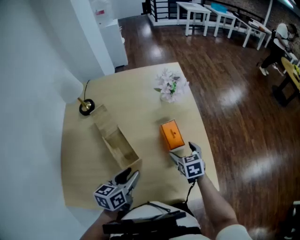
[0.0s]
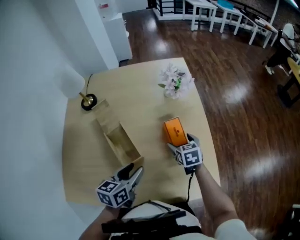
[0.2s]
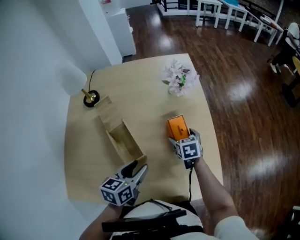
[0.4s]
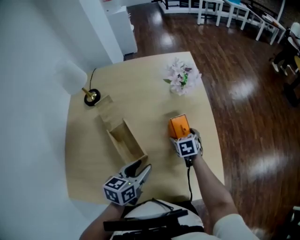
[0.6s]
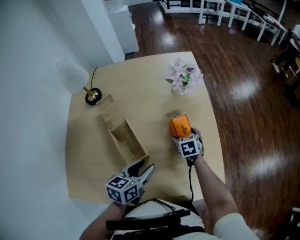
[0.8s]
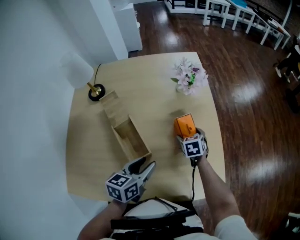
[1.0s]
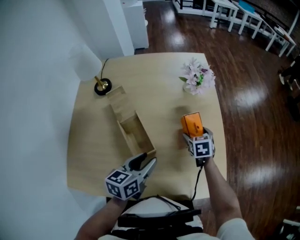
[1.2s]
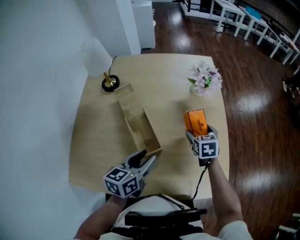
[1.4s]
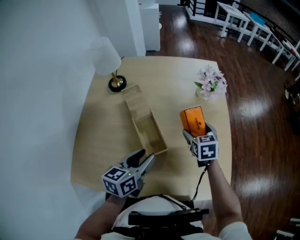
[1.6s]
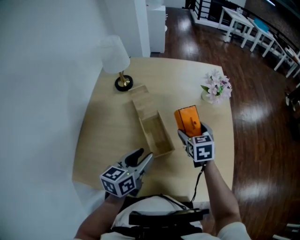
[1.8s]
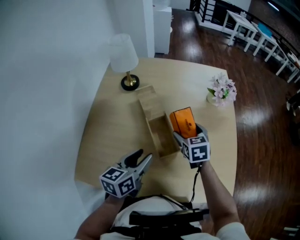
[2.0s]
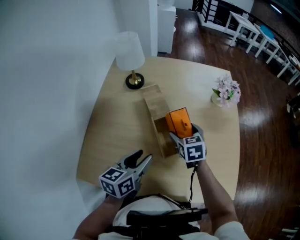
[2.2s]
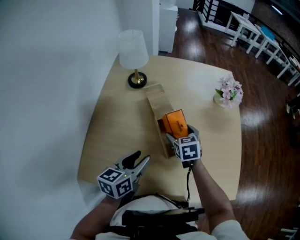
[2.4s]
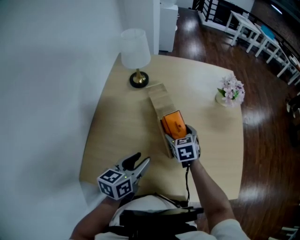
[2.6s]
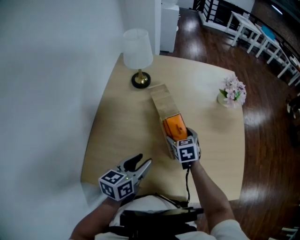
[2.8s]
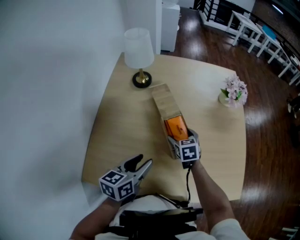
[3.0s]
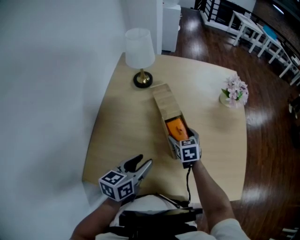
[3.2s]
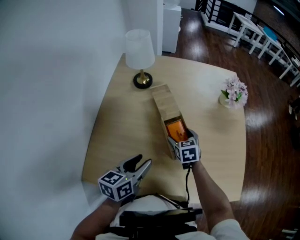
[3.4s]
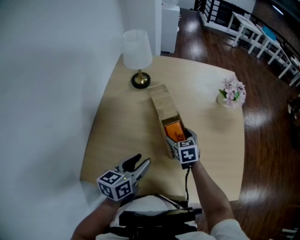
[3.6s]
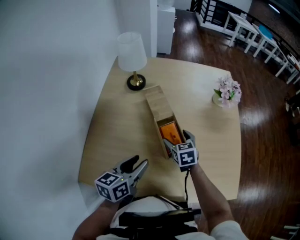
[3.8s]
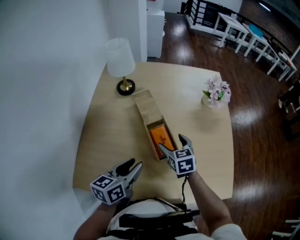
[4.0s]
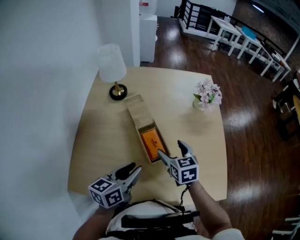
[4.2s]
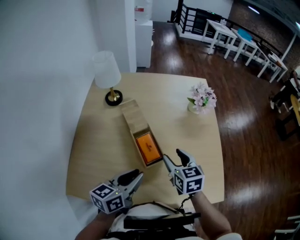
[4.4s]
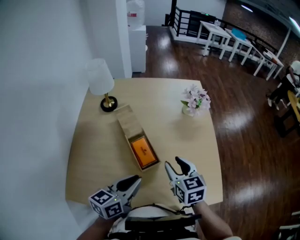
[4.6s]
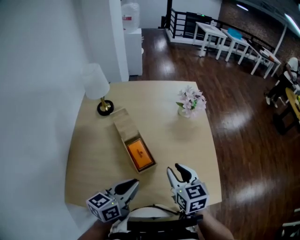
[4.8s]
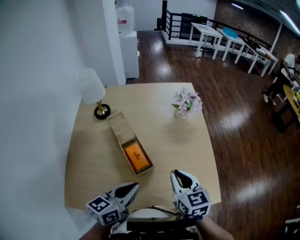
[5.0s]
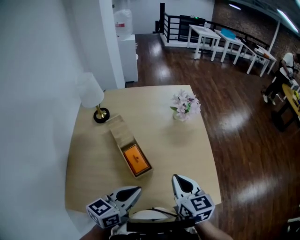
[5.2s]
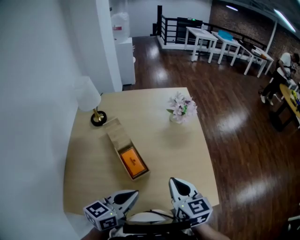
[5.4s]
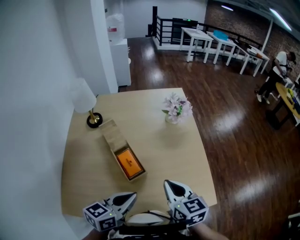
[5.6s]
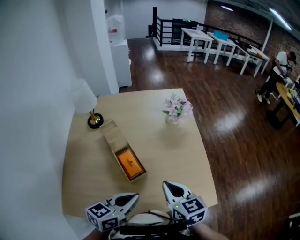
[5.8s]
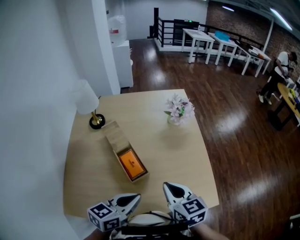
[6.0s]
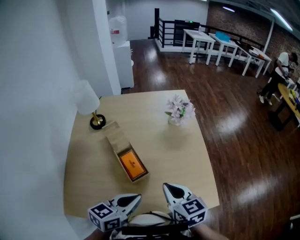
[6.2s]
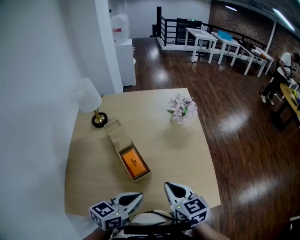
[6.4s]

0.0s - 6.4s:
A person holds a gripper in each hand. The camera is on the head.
0.0s - 1.6s: The left gripper shifts roughly 5 cm to the left. Meanwhile the right gripper moves to the left, forward and upward, approximately 15 cm.
1.6s - 3.2s: The two grippers go approximately 20 cm to the left.
3.2s - 4.8s: The left gripper goes about 15 cm to the right and upward, and closes. The right gripper shifts roughly 25 cm upward, to the right and backward, and closes its fingers.
4.8s - 6.4s: The left gripper heads to the right, covering about 5 cm.

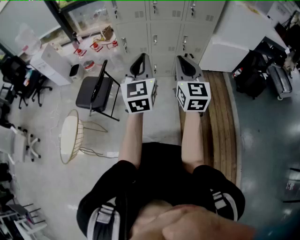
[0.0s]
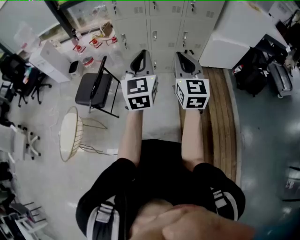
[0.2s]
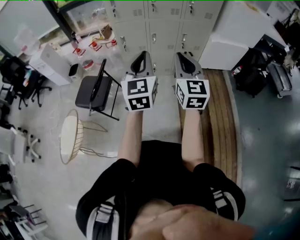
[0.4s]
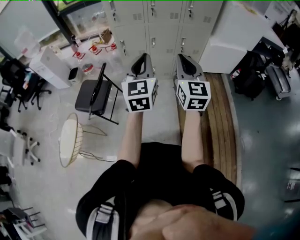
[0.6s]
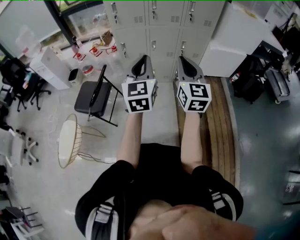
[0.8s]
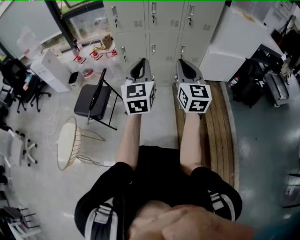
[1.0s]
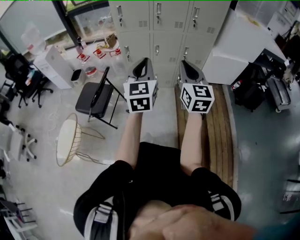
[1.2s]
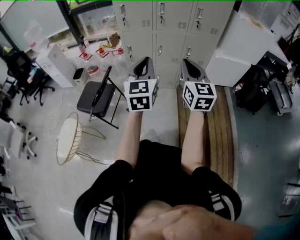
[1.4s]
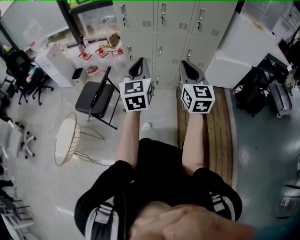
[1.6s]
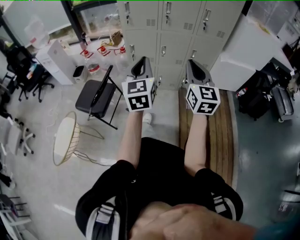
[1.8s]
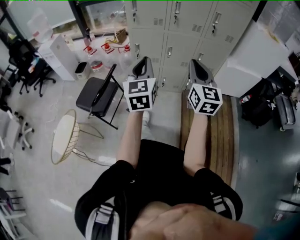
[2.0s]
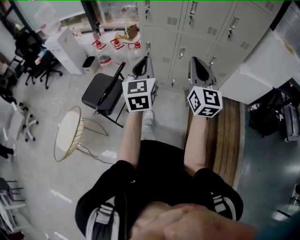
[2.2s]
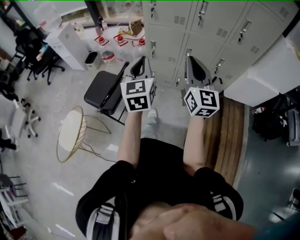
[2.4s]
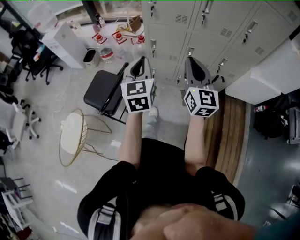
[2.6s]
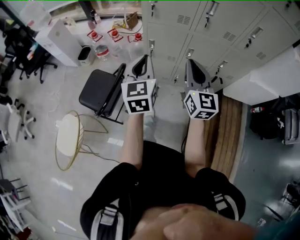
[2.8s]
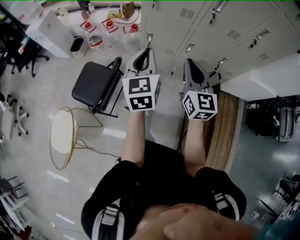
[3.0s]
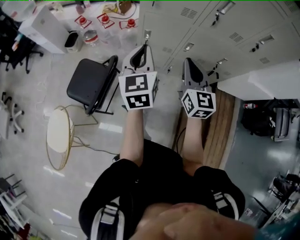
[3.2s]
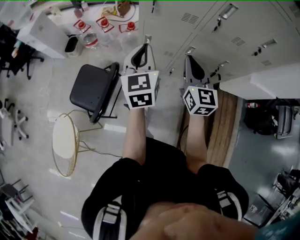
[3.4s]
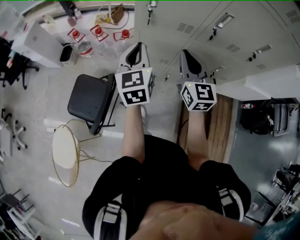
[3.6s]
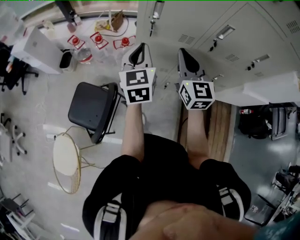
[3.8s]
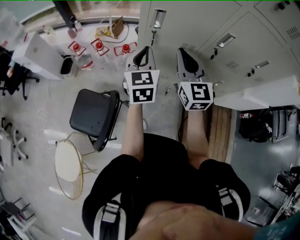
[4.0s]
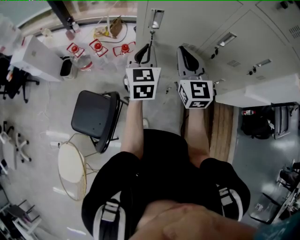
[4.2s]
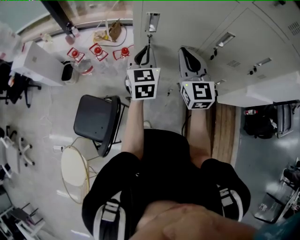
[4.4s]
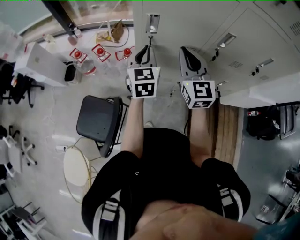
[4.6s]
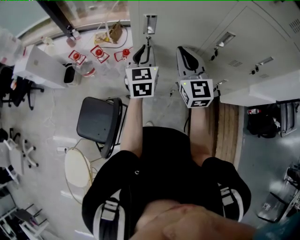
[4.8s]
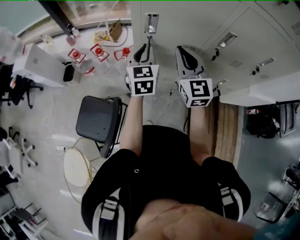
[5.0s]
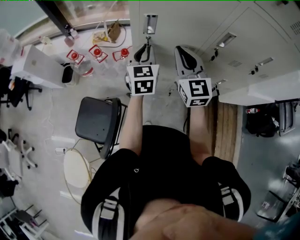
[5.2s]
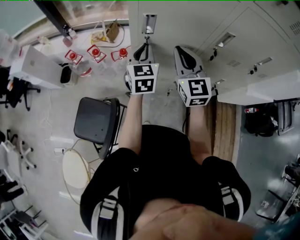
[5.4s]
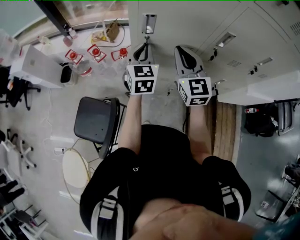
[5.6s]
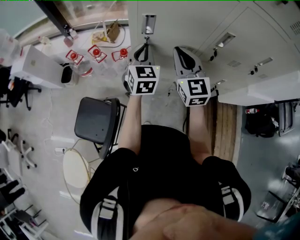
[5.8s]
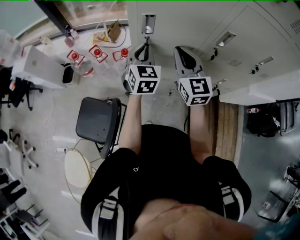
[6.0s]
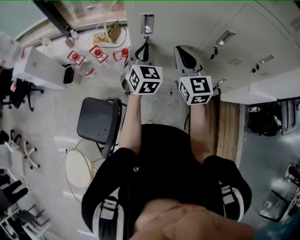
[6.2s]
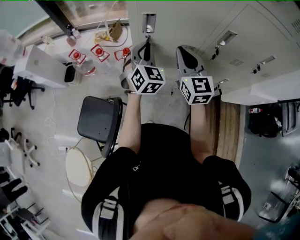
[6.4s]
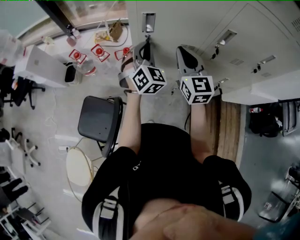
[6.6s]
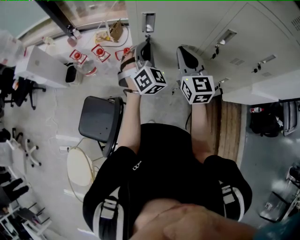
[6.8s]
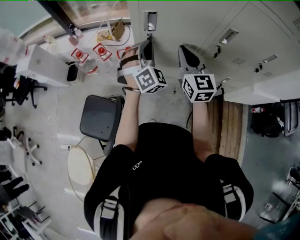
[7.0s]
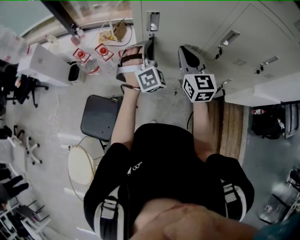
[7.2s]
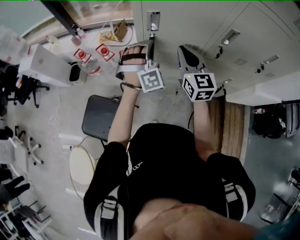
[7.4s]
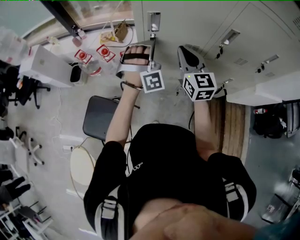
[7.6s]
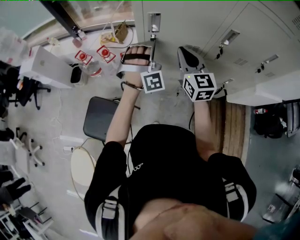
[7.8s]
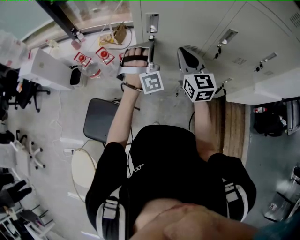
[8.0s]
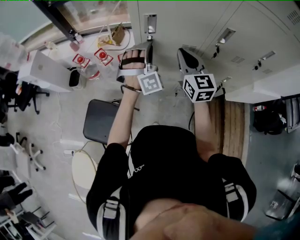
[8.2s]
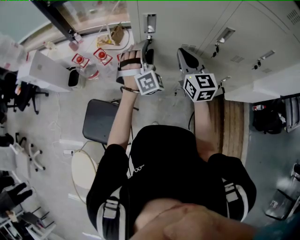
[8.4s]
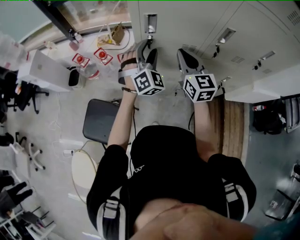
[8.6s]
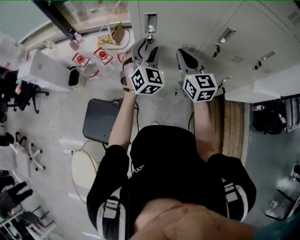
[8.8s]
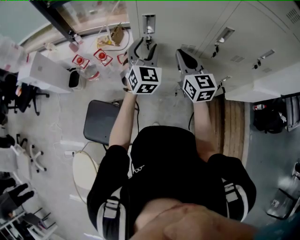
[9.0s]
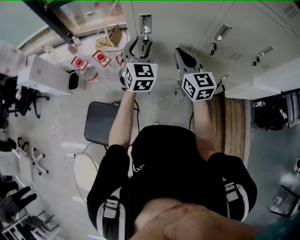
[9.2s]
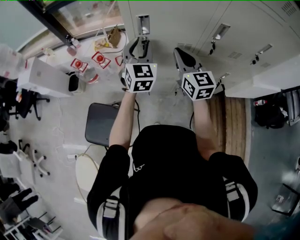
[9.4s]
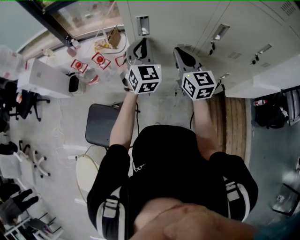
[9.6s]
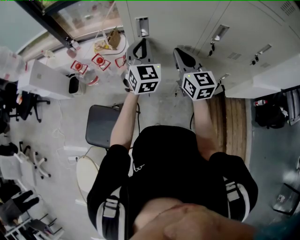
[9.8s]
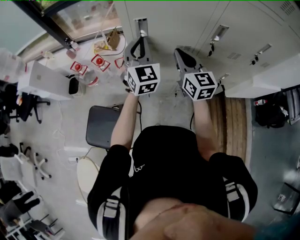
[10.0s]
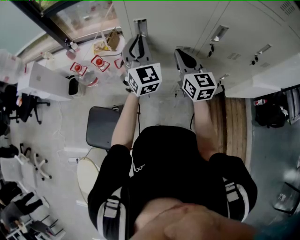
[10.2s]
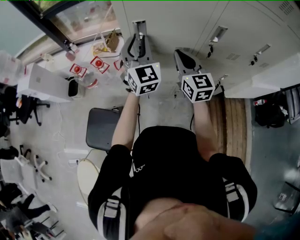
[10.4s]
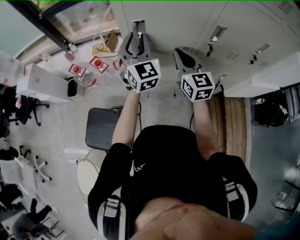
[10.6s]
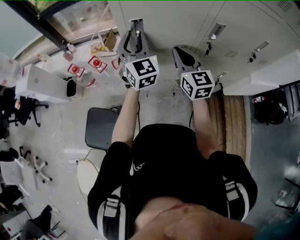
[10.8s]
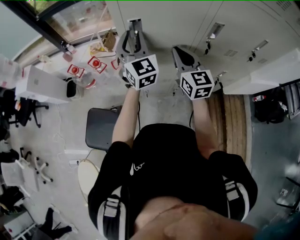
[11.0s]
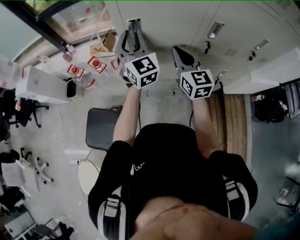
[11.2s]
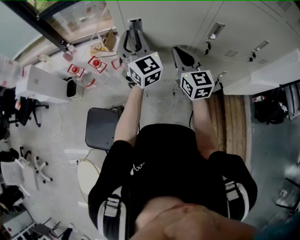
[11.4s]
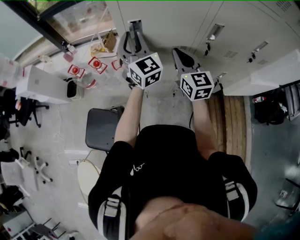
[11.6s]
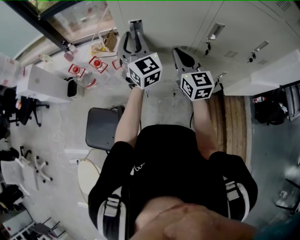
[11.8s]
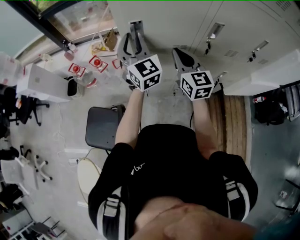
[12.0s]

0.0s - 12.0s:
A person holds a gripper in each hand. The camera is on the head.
0.0s - 1.6s: The grippers make only small movements.
1.6s - 3.0s: Both grippers travel together forward, some 35 cm.
3.0s - 4.4s: The two grippers go some 25 cm forward.
4.4s - 6.0s: The grippers move only a little.
6.0s - 7.6s: The left gripper twists some 80 degrees clockwise, seen from behind.
7.6s - 9.0s: The left gripper rolls counterclockwise, seen from behind, by approximately 60 degrees, and opens.
9.0s - 10.4s: The left gripper moves upward, roughly 5 cm, and closes.
10.4s - 12.0s: The grippers move only a little.

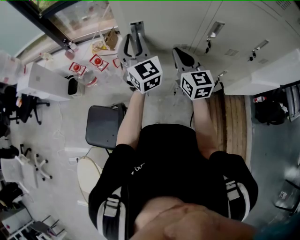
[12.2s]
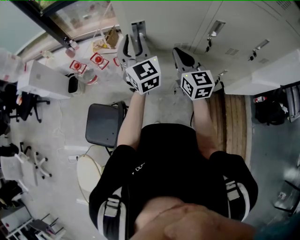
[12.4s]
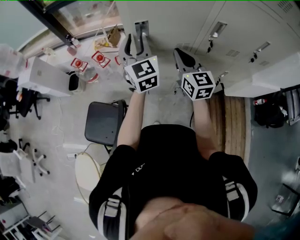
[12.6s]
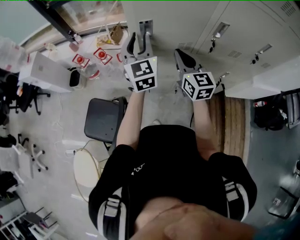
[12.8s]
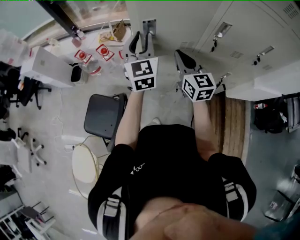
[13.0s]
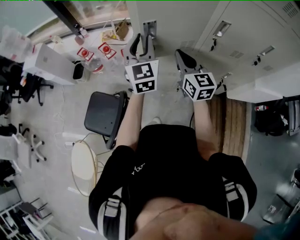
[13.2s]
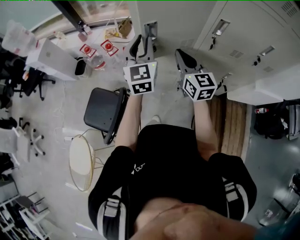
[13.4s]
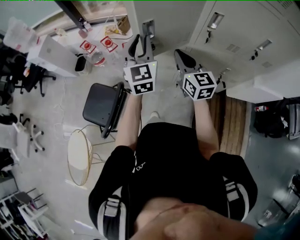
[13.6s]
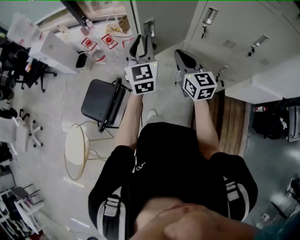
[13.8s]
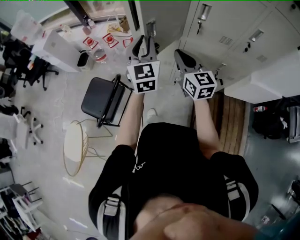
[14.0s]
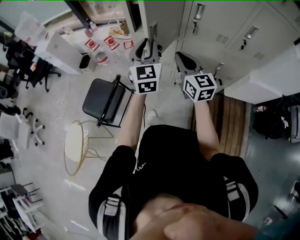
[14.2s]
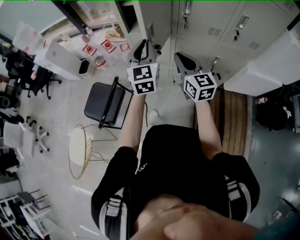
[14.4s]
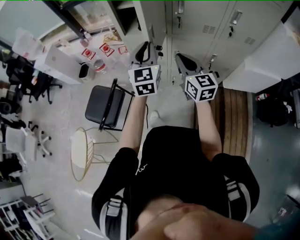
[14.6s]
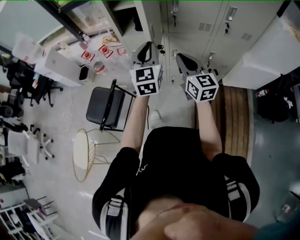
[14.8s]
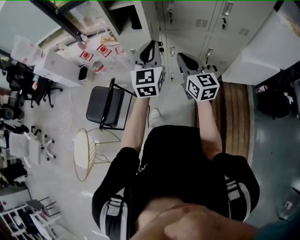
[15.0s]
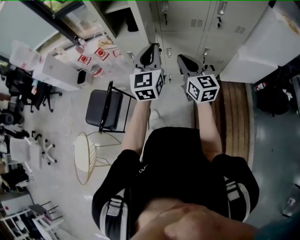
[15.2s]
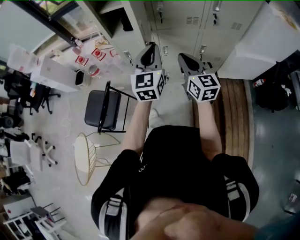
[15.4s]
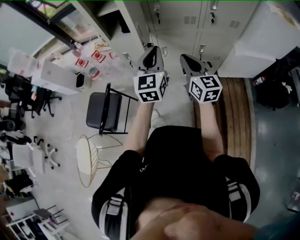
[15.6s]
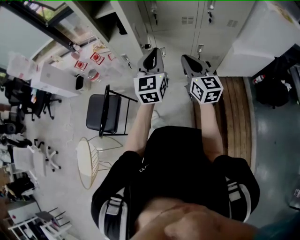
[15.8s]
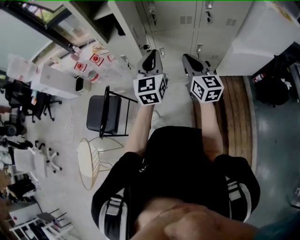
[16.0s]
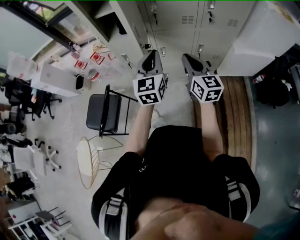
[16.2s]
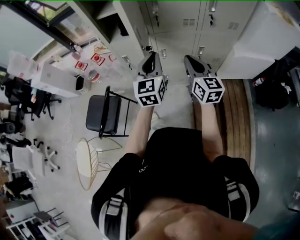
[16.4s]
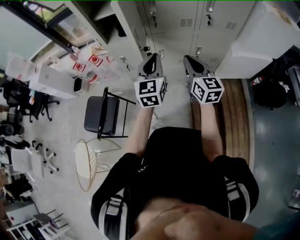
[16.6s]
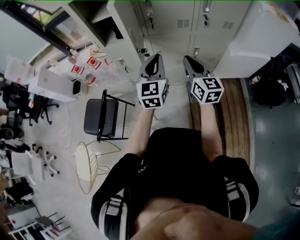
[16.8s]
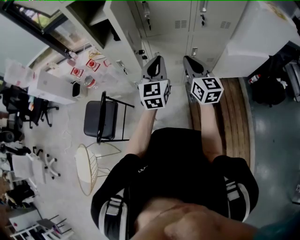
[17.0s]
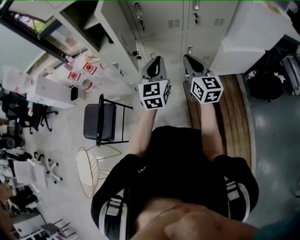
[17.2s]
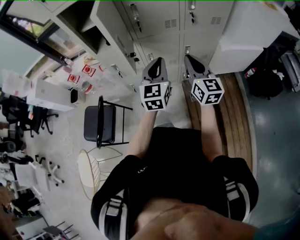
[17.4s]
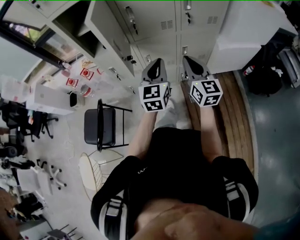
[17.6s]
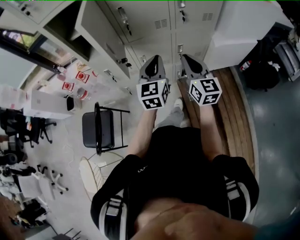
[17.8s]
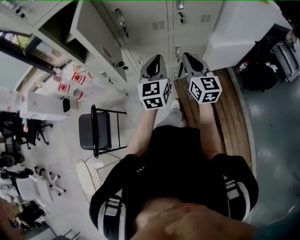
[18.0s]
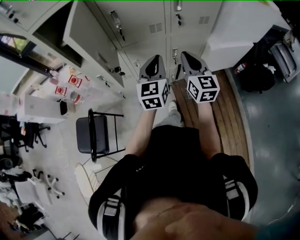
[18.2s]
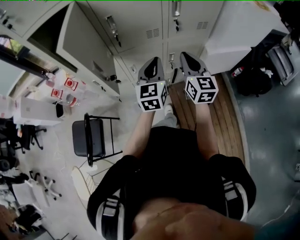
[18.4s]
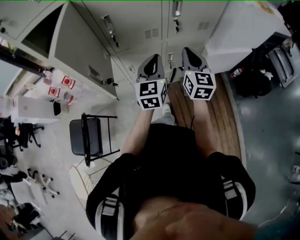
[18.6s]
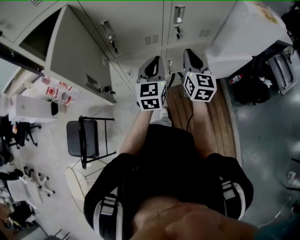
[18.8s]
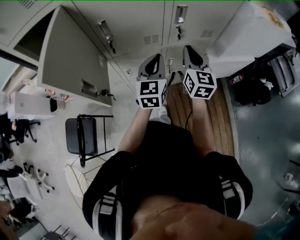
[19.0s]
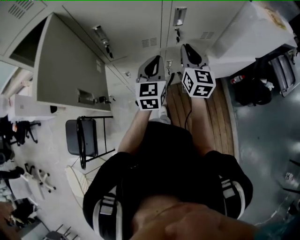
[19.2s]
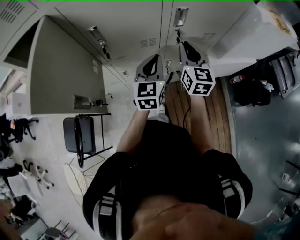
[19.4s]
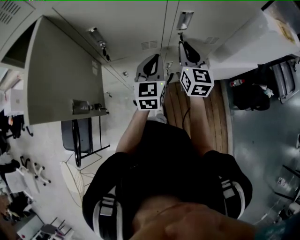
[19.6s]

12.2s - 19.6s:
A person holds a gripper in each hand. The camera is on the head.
12.2s - 13.6s: Both grippers travel together backward, approximately 10 cm.
13.6s - 15.2s: The two grippers go some 25 cm backward and to the right.
15.2s - 16.6s: The right gripper travels to the right by about 5 cm; the left gripper changes place by some 5 cm.
16.6s - 18.2s: Both grippers travel together to the right and forward, about 15 cm.
18.2s - 19.6s: The two grippers go approximately 20 cm forward.
